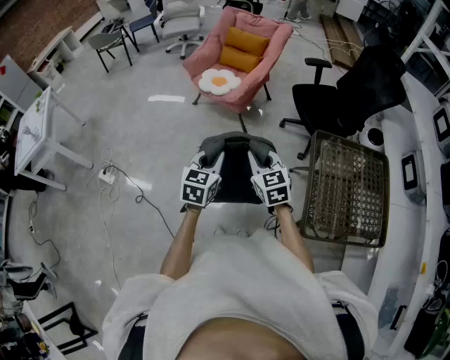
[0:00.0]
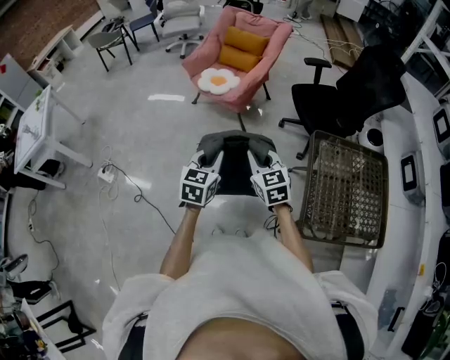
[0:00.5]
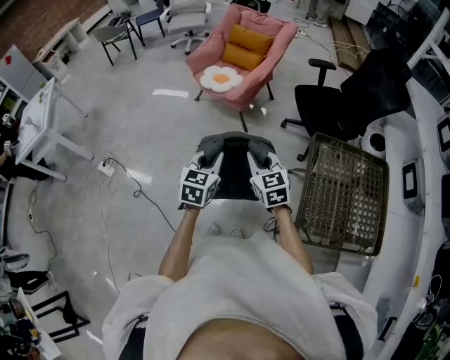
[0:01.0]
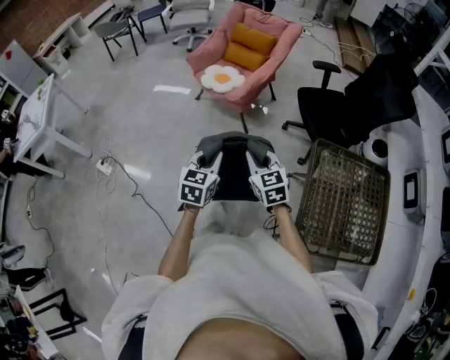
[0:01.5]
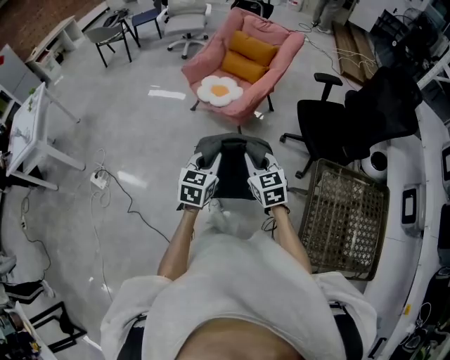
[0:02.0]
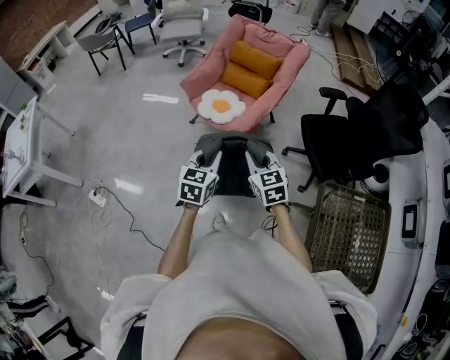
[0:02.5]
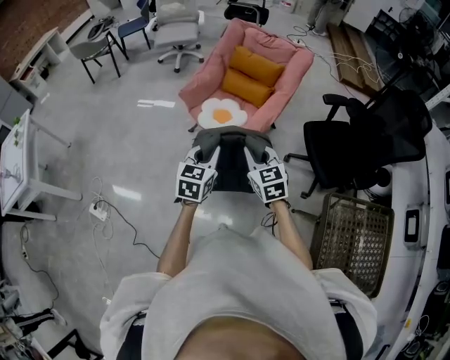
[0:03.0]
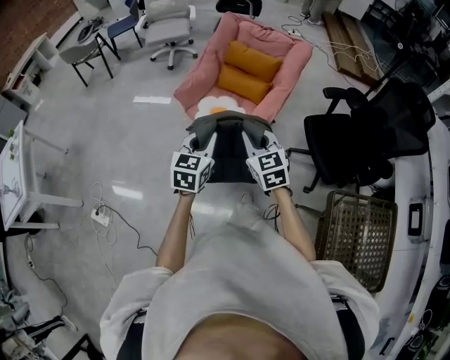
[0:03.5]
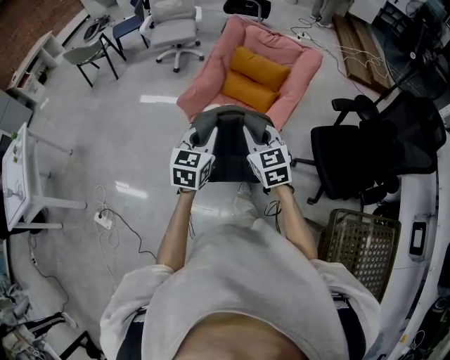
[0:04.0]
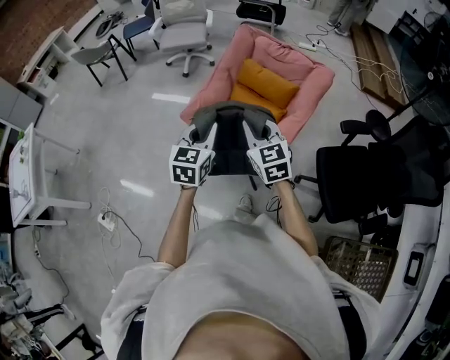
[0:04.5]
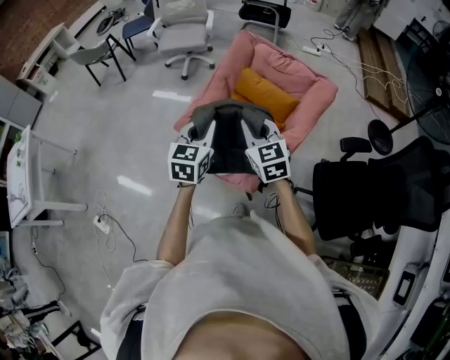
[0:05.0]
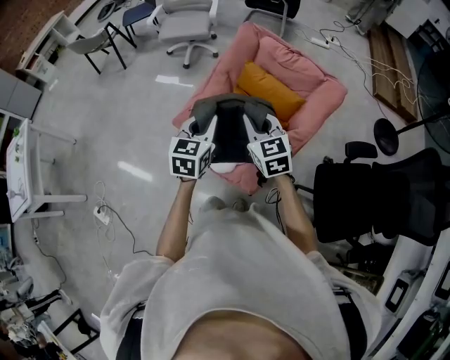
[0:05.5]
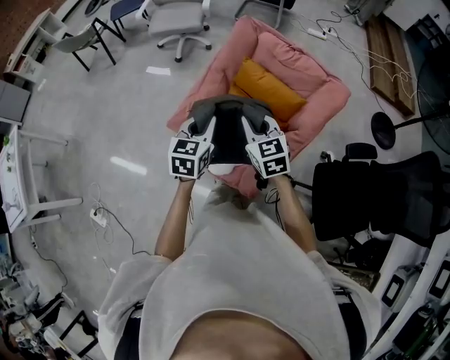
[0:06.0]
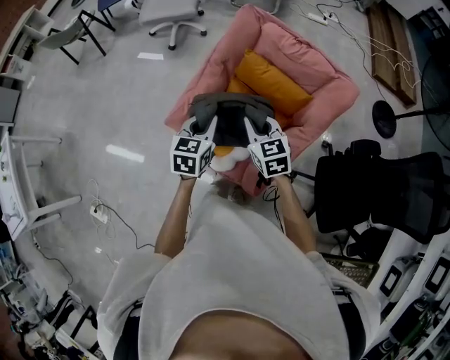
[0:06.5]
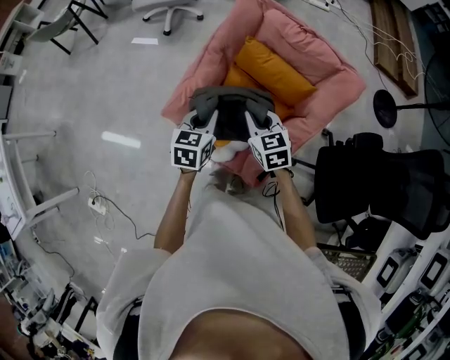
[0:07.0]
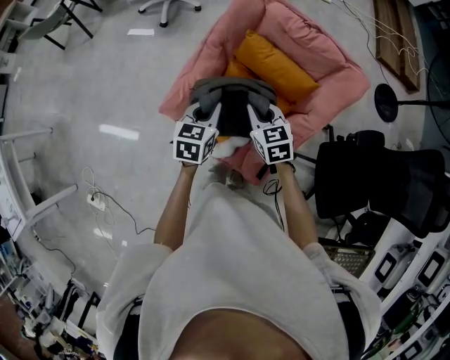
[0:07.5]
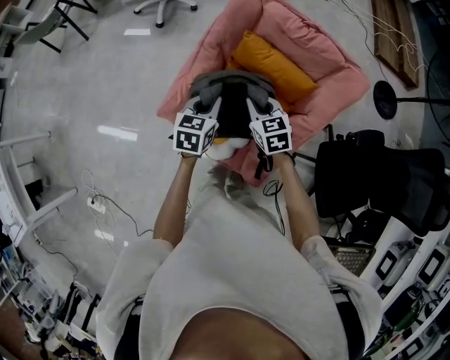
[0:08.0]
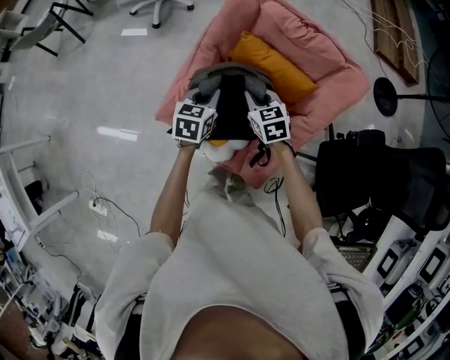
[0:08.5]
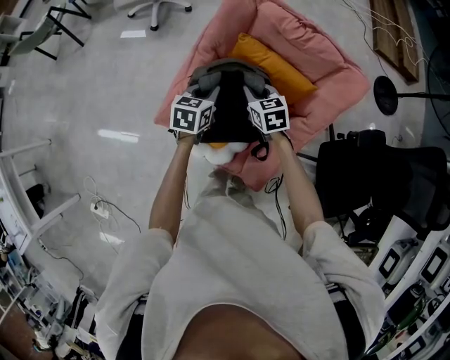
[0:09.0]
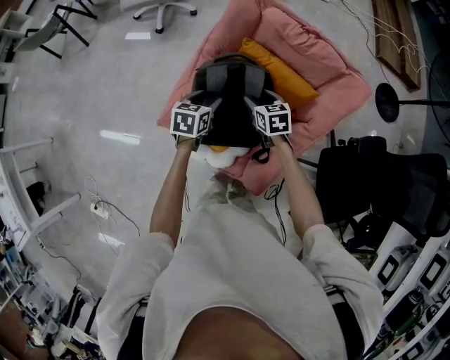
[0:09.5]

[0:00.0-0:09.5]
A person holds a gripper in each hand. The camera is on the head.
0:00.0 to 0:02.0: Both grippers travel together forward, roughly 15 cm.
0:02.0 to 0:04.0: The pair of grippers is taken forward, roughly 40 cm.
0:04.0 to 0:05.5: The grippers both shift forward by approximately 30 cm.
0:05.5 to 0:07.5: The right gripper travels downward and forward by roughly 20 cm. Meanwhile the left gripper travels forward and downward by about 20 cm.
0:07.5 to 0:09.5: Both grippers travel together downward and forward, some 15 cm. The left gripper opens. The right gripper opens.

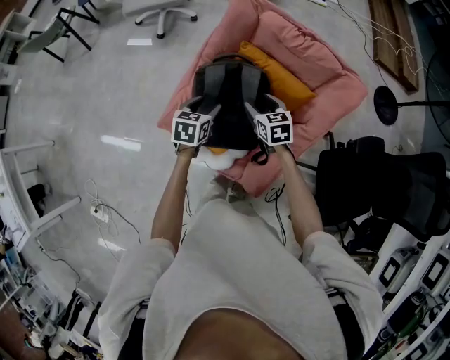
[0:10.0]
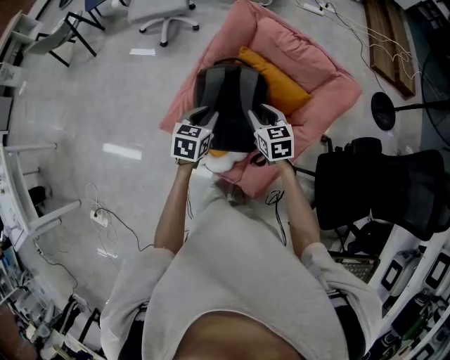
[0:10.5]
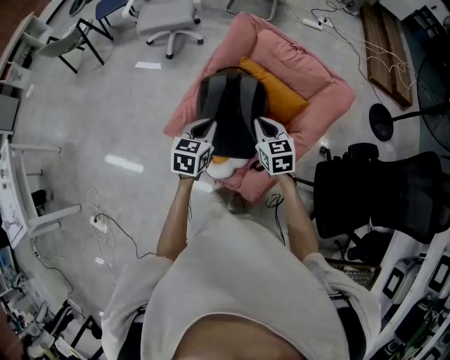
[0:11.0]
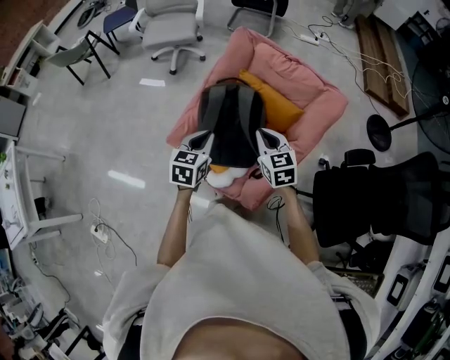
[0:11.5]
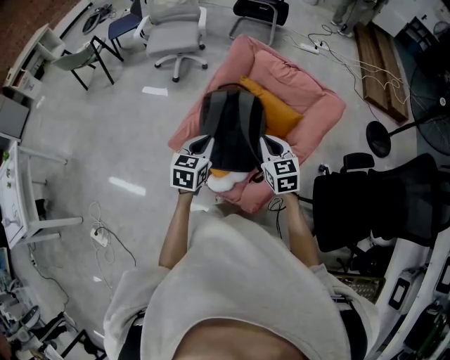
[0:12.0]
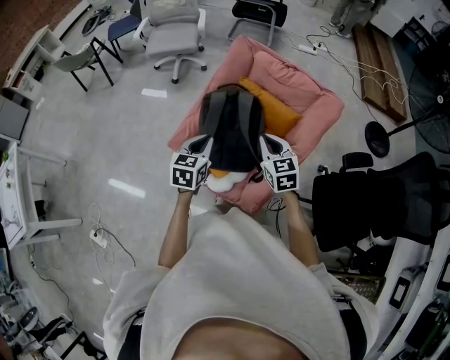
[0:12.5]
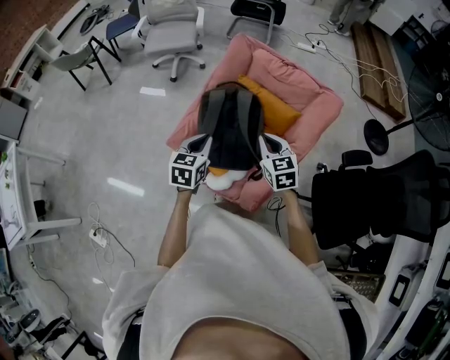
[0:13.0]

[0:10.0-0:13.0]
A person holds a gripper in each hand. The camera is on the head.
0:10.0 to 0:11.5: The right gripper goes some 20 cm upward and backward, and closes up, while the left gripper moves backward and upward, roughly 20 cm, and closes up.
0:11.5 to 0:13.0: There are only small adjustments of the grippers.

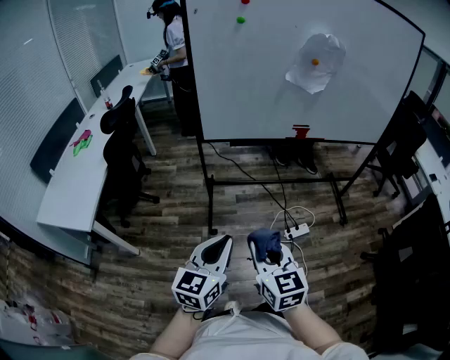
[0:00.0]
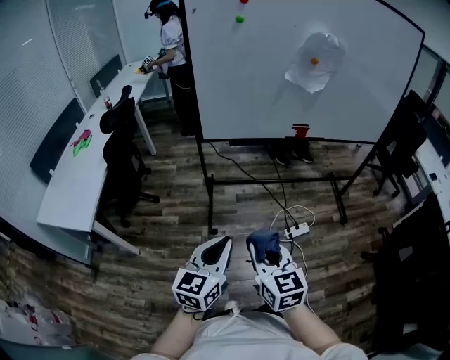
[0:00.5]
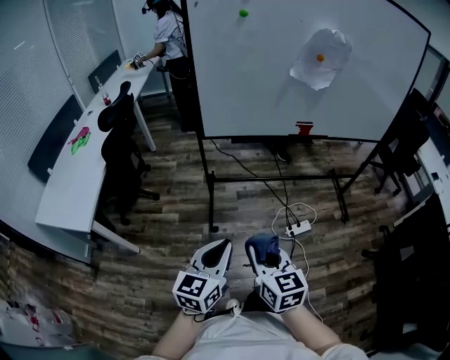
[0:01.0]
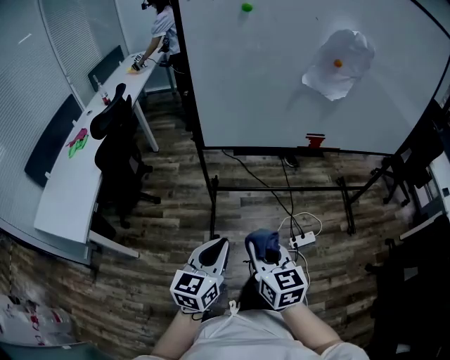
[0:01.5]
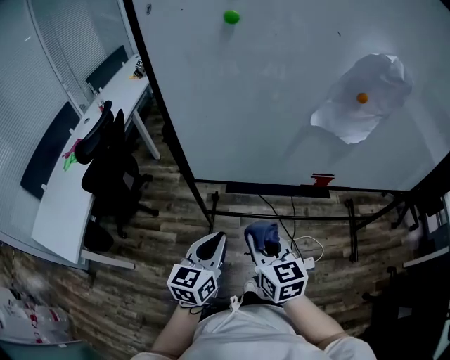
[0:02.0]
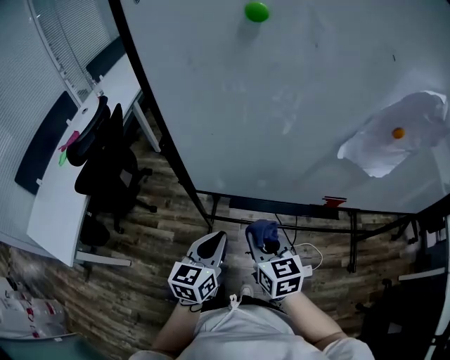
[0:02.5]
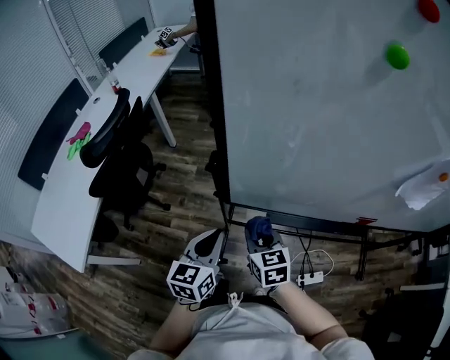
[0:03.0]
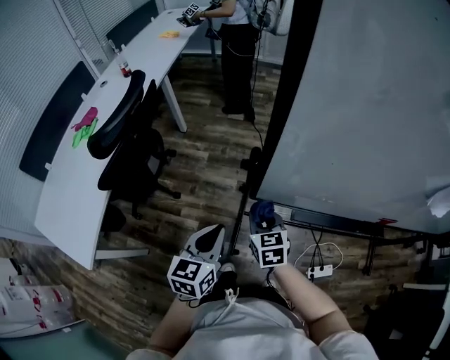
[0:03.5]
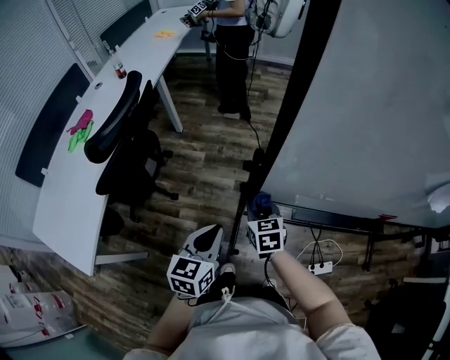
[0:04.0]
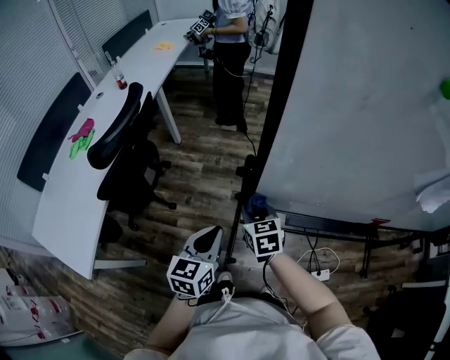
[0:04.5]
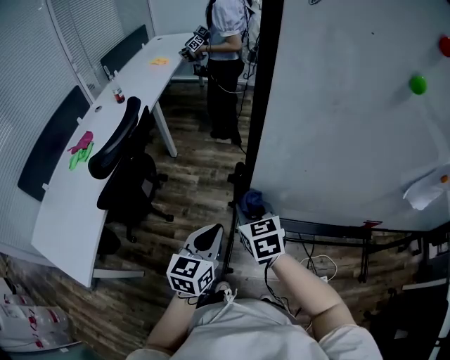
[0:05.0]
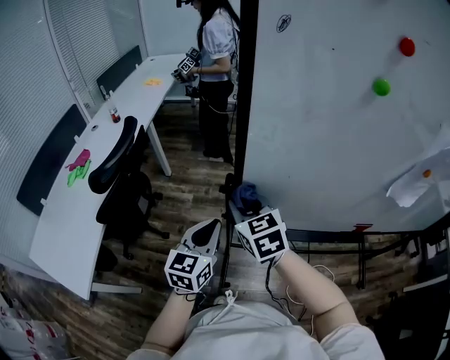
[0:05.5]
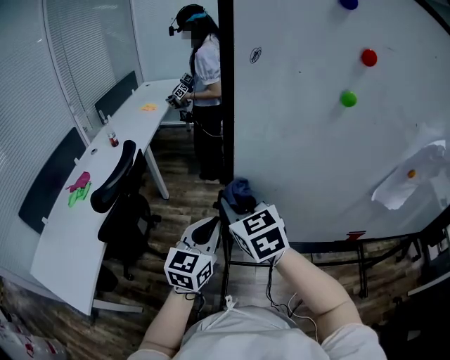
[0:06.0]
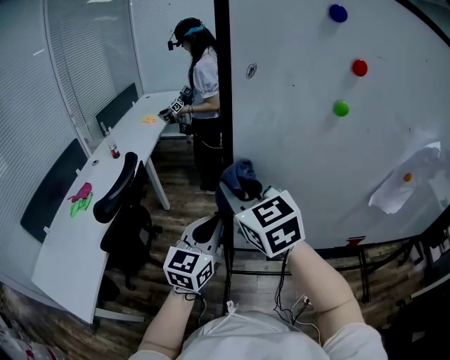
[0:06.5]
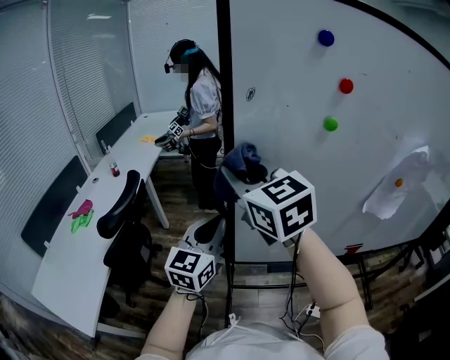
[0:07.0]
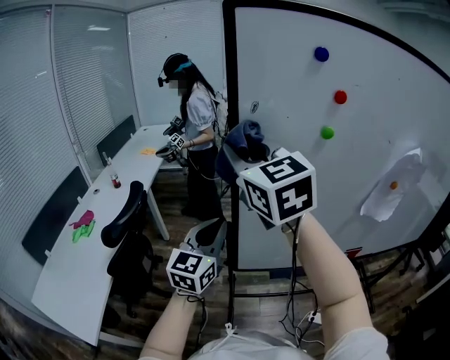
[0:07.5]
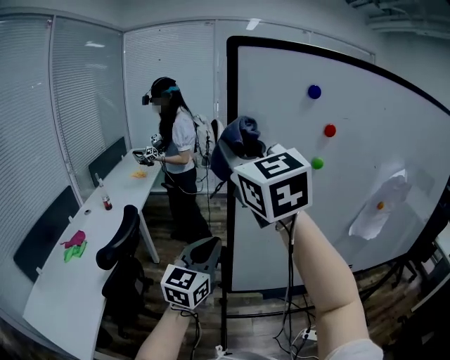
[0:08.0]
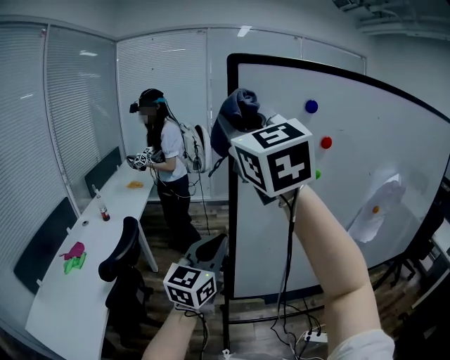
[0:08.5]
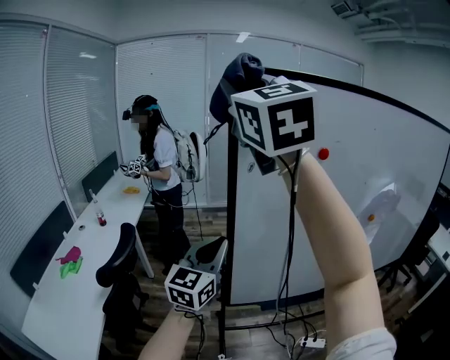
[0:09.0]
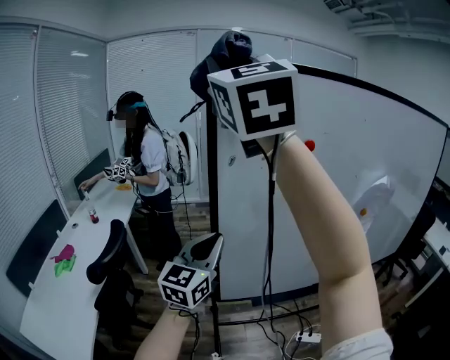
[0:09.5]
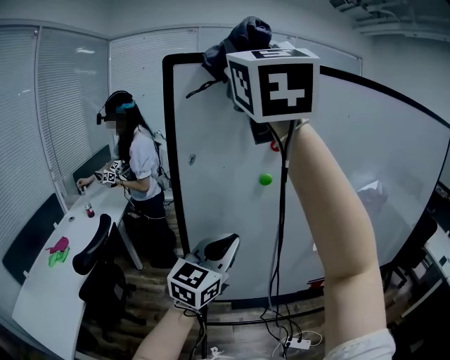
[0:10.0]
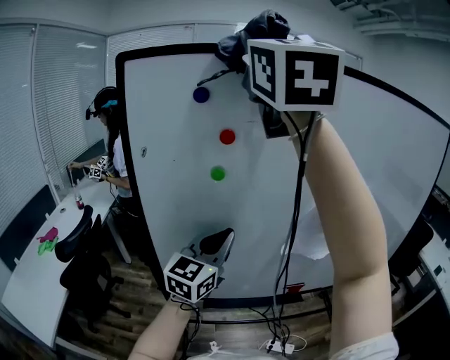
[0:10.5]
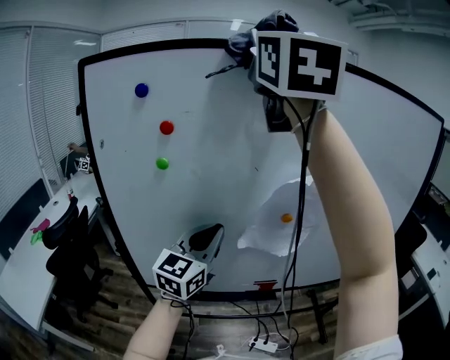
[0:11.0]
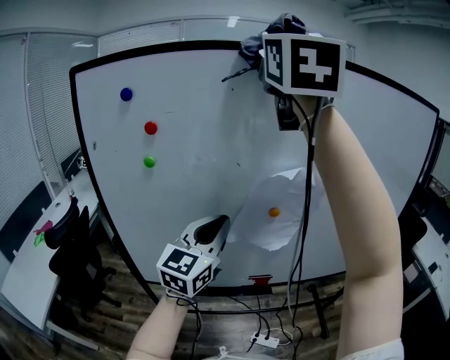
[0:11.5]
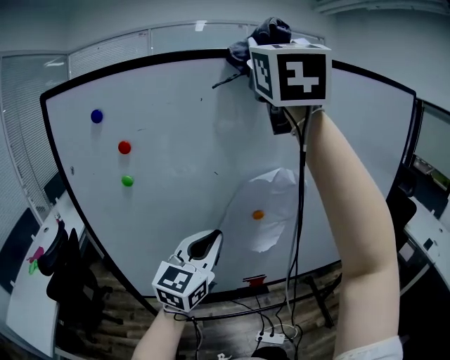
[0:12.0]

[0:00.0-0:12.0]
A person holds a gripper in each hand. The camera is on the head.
0:00.0 to 0:02.0: Both grippers travel together forward, approximately 35 cm.
0:02.0 to 0:04.0: The left gripper goes roughly 30 cm to the left and forward. The right gripper moves forward, to the left and downward, about 40 cm.
0:04.0 to 0:06.0: The left gripper heads upward, covering roughly 15 cm, and swivels about 20 degrees. Meanwhile the right gripper heads upward, covering approximately 30 cm, and turns by approximately 30 degrees.
0:06.0 to 0:08.0: The right gripper is displaced upward by approximately 35 cm, and rotates about 30 degrees, while the left gripper goes roughly 15 cm upward.
0:08.0 to 0:10.0: The right gripper is displaced upward and to the right by some 25 cm, and swivels some 30 degrees. Meanwhile the left gripper goes roughly 20 cm to the right.
0:10.0 to 0:12.0: Both grippers move to the right, roughly 30 cm.

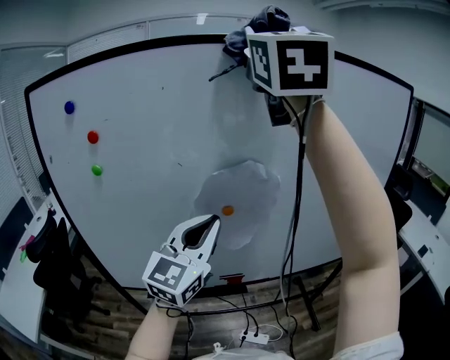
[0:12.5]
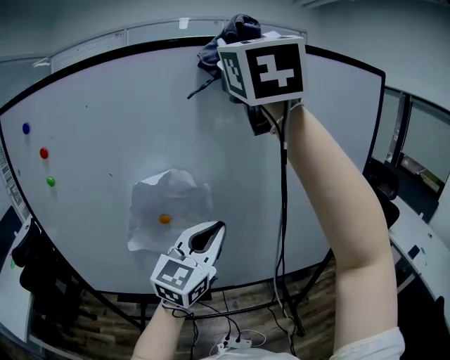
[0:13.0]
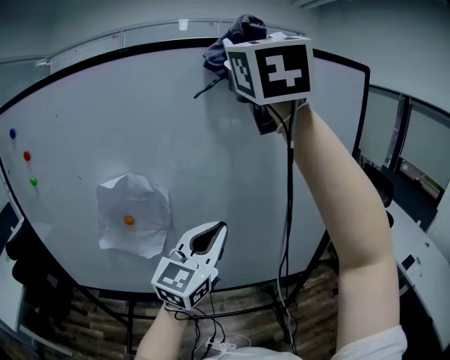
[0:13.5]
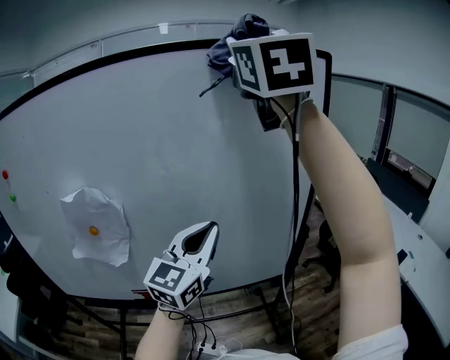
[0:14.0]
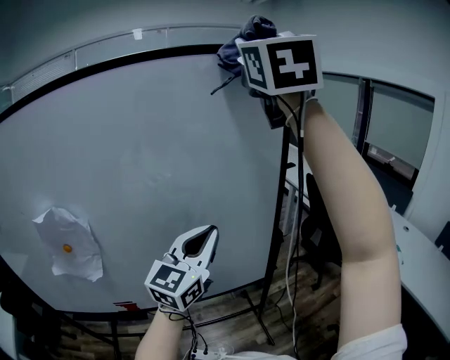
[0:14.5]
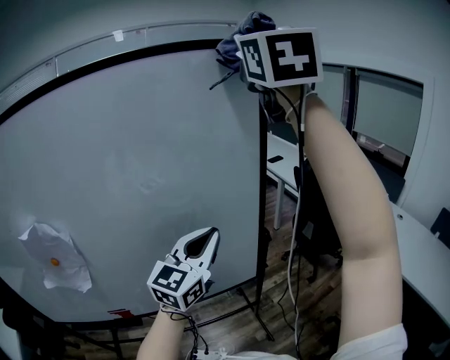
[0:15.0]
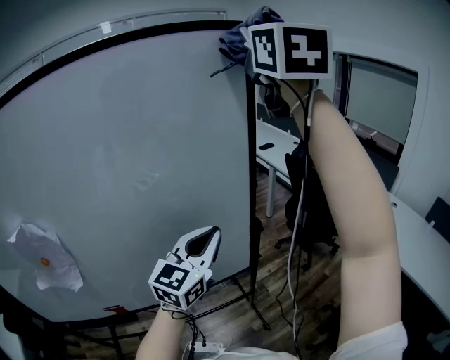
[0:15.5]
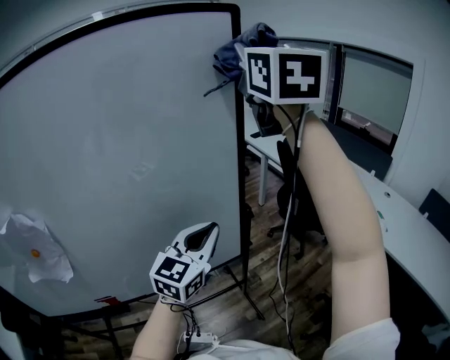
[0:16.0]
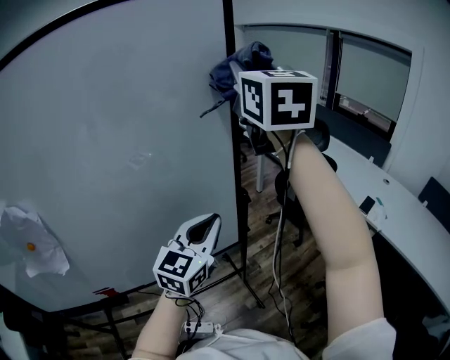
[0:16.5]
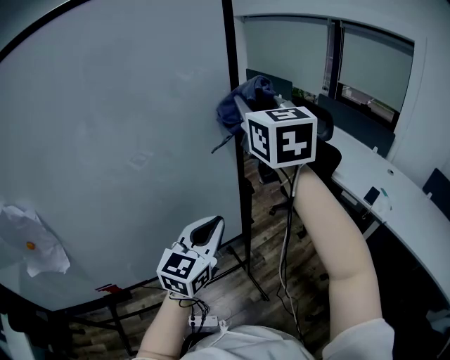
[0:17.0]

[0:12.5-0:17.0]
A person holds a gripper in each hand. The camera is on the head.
0:12.5 to 0:14.5: The two grippers travel together, to the right, about 50 cm.
0:14.5 to 0:17.0: The left gripper travels downward and to the right by about 20 cm. The right gripper travels downward by roughly 30 cm, and changes its angle by about 20 degrees.
